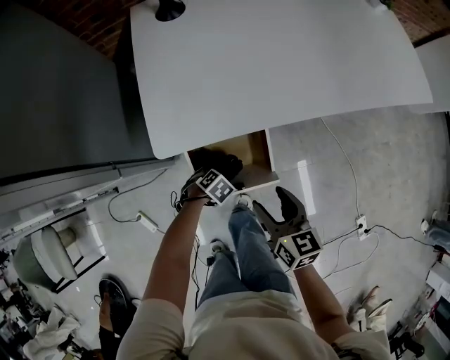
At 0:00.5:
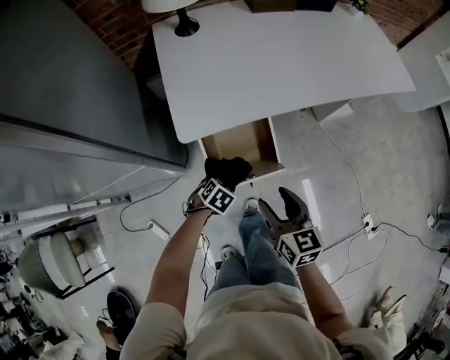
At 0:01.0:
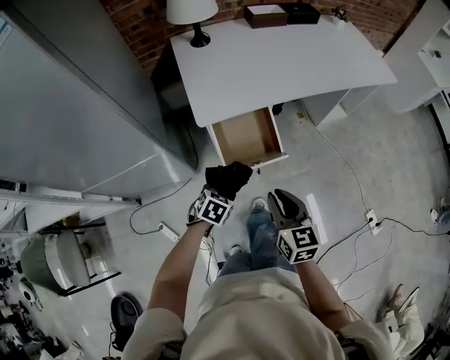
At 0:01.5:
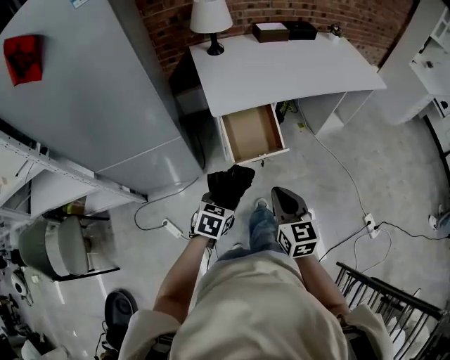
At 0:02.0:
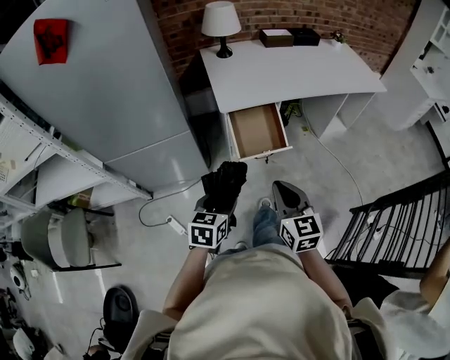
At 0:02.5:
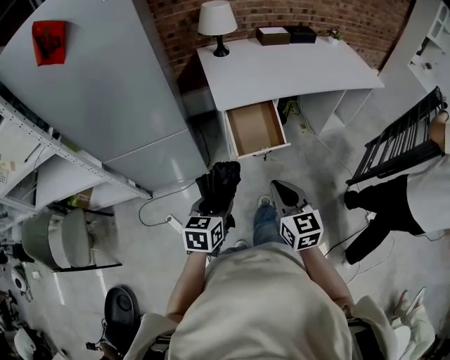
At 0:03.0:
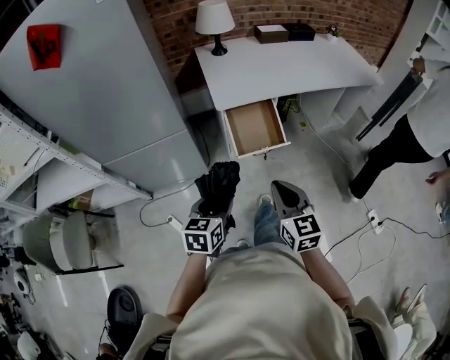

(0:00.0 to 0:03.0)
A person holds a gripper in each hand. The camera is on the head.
0:00.0 - 0:01.5: The left gripper shifts some 30 cm upward, and points its fingers approximately 40 degrees further upward; the right gripper changes place by roughly 35 cm, swivels about 20 degrees, and closes its fingers.
0:01.5 - 0:03.0: The right gripper changes place by roughly 5 cm. Meanwhile the left gripper moves upward and backward, some 10 cm, and swivels some 20 degrees.

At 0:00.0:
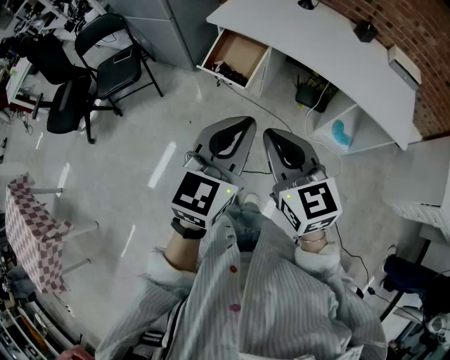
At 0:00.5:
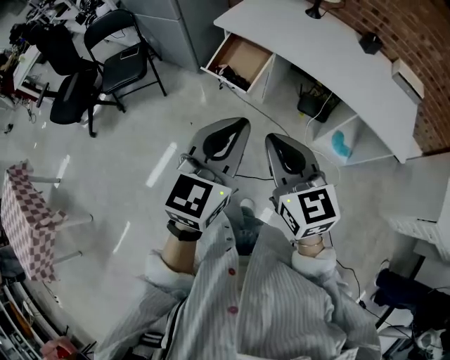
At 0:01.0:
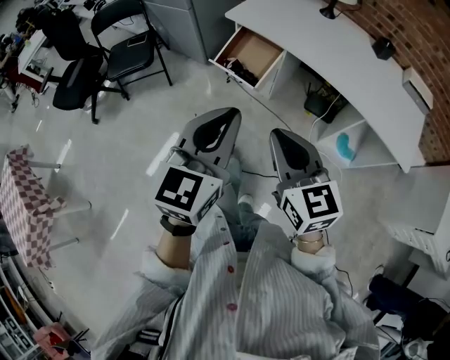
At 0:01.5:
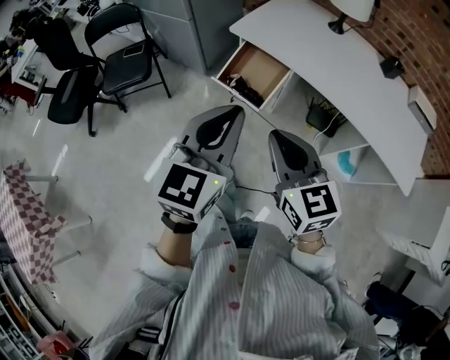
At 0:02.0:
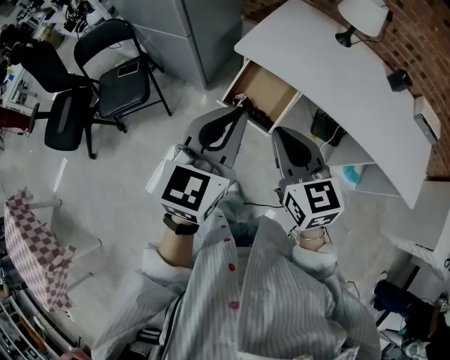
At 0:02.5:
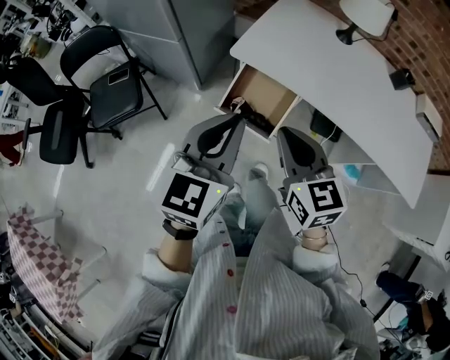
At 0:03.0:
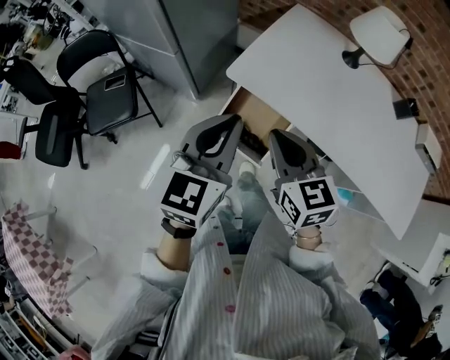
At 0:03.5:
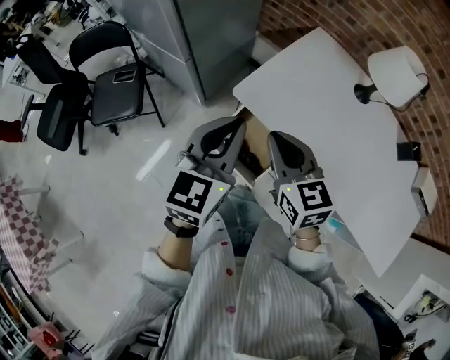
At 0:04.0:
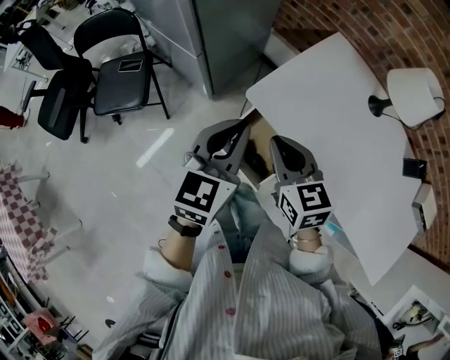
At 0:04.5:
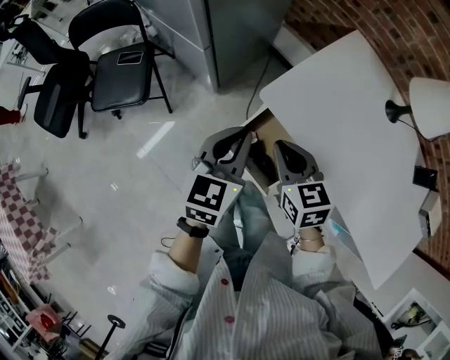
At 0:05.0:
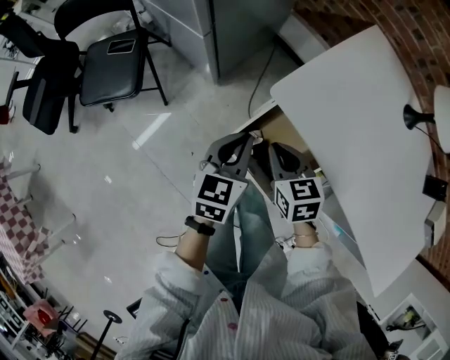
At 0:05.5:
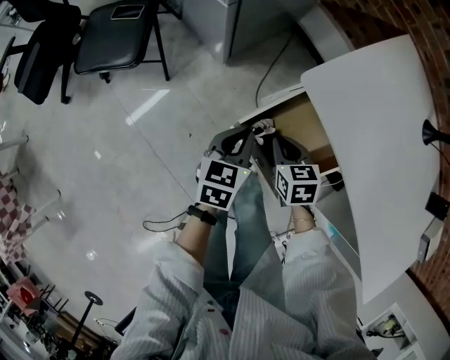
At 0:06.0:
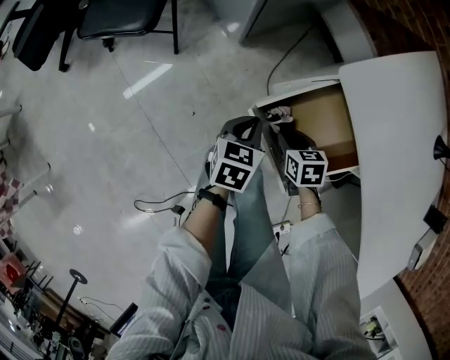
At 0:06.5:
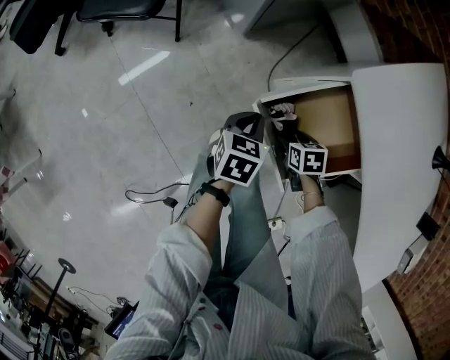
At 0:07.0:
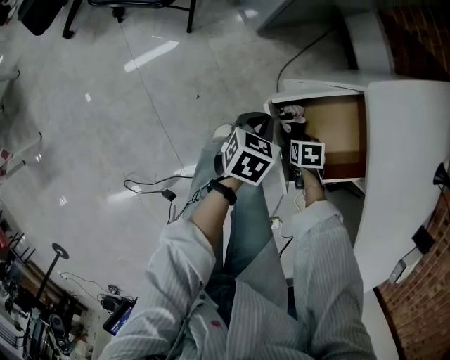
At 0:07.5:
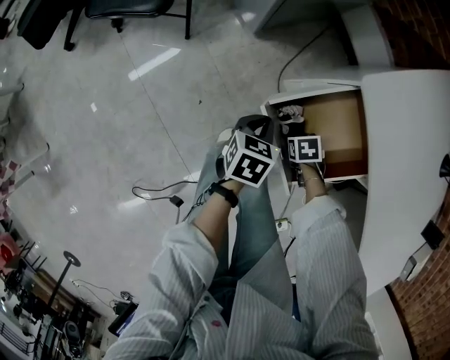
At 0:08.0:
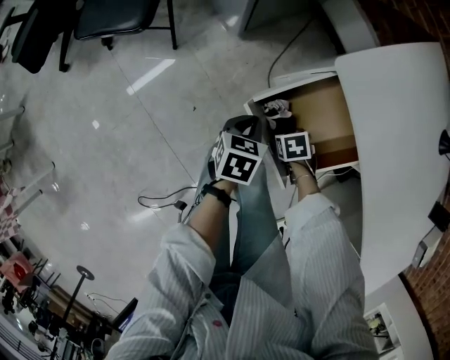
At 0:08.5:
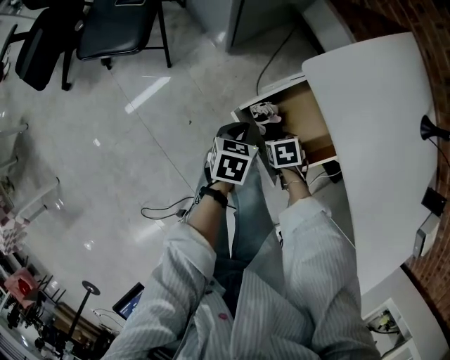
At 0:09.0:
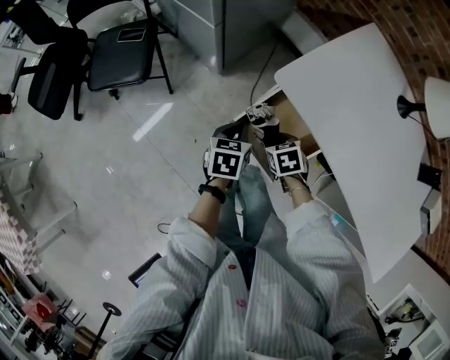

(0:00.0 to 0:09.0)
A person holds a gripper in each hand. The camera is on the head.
0:00.0 - 0:02.0: The right gripper travels forward by about 25 cm. Meanwhile the left gripper shifts approximately 30 cm forward and to the left.
0:02.0 - 0:04.5: Both grippers travel together forward and downward, approximately 35 cm. The right gripper rotates roughly 20 degrees. The left gripper turns by approximately 20 degrees.
0:04.5 - 0:07.0: The grippers both shift downward by about 40 cm. The right gripper points its fingers about 50 degrees further downward, and opens up, while the left gripper swivels approximately 40 degrees.
0:07.0 - 0:09.0: Both grippers travel together upward, roughly 20 cm.

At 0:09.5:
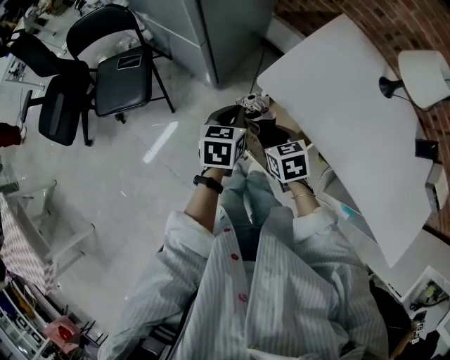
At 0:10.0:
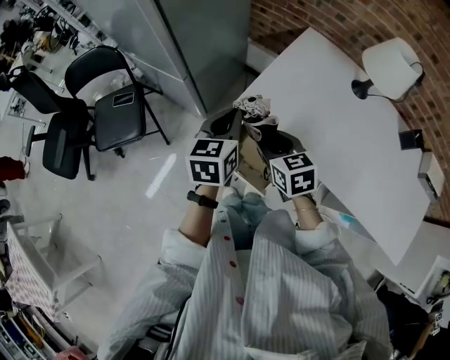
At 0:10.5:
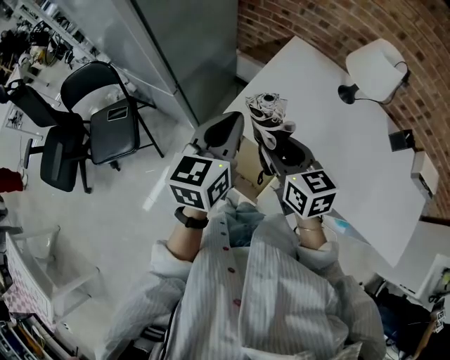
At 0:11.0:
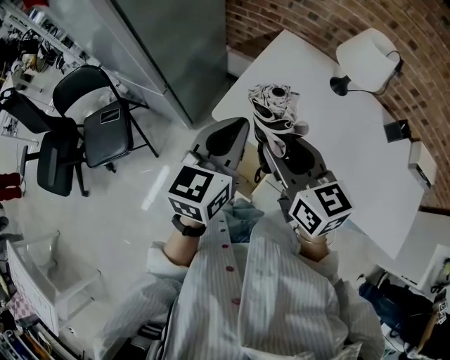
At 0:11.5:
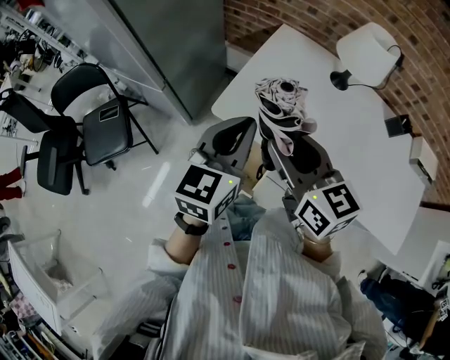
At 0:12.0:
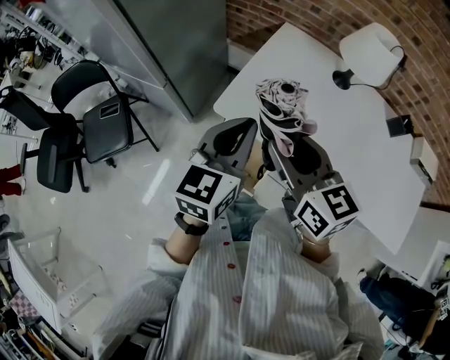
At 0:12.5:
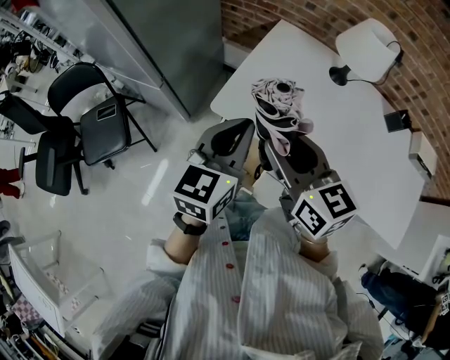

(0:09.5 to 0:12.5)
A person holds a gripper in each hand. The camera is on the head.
0:09.5 - 0:11.0: The two grippers go approximately 30 cm upward and to the right. The left gripper rotates approximately 30 degrees, while the right gripper tilts its fingers approximately 40 degrees upward.
0:11.0 - 0:12.5: The grippers move only a little.

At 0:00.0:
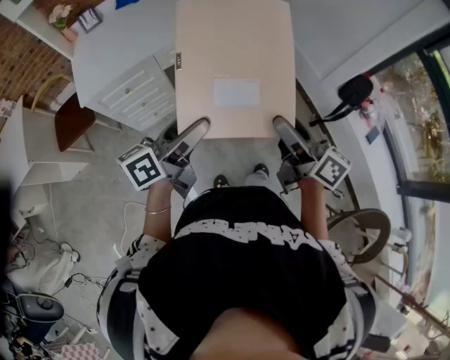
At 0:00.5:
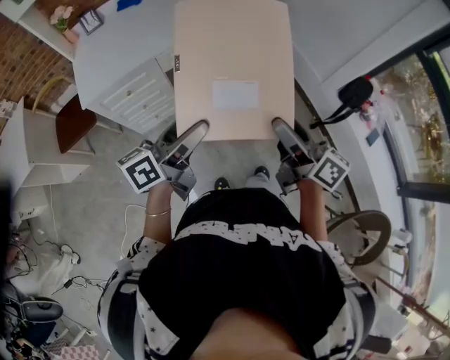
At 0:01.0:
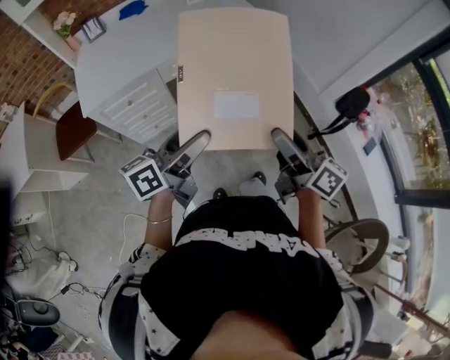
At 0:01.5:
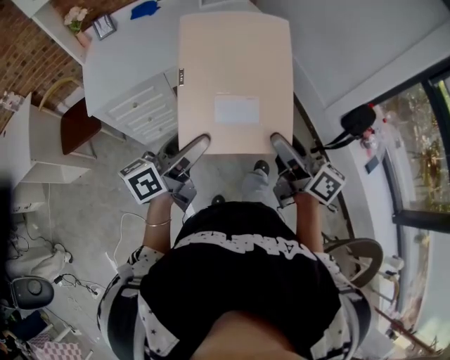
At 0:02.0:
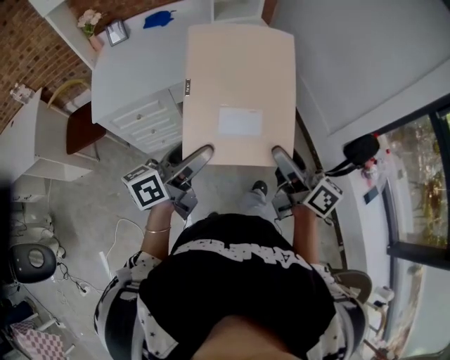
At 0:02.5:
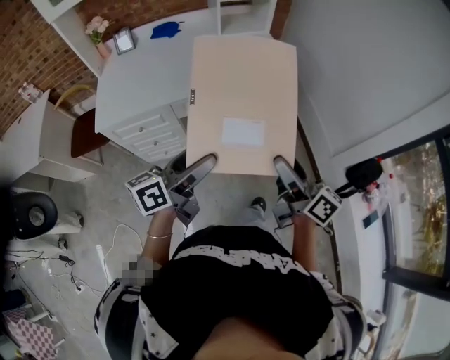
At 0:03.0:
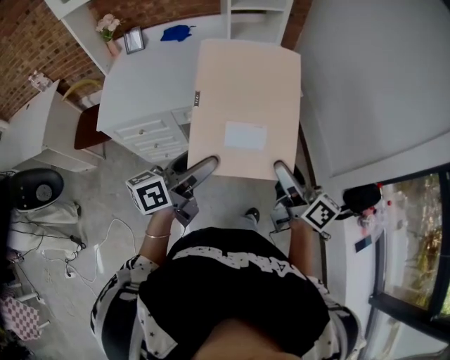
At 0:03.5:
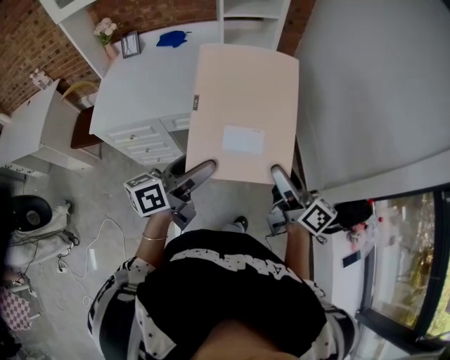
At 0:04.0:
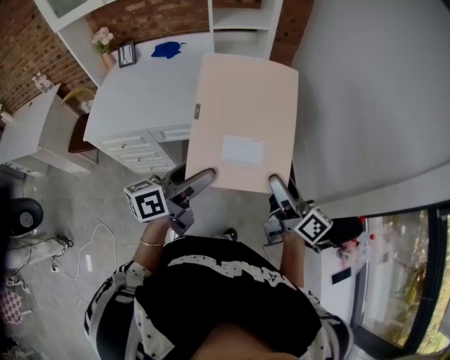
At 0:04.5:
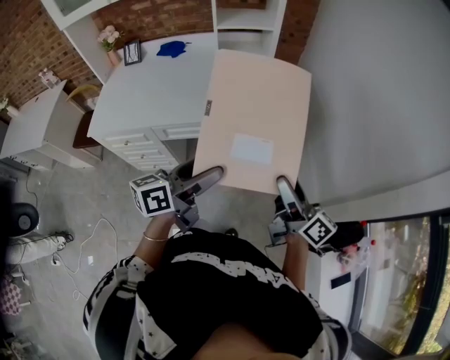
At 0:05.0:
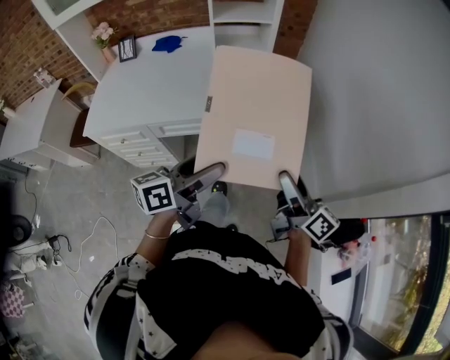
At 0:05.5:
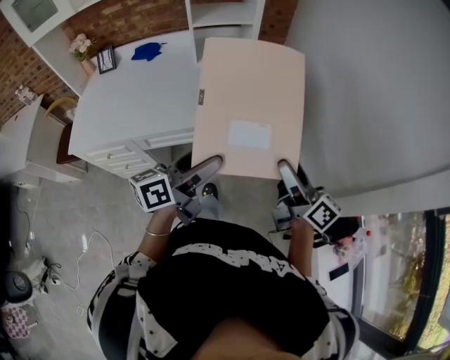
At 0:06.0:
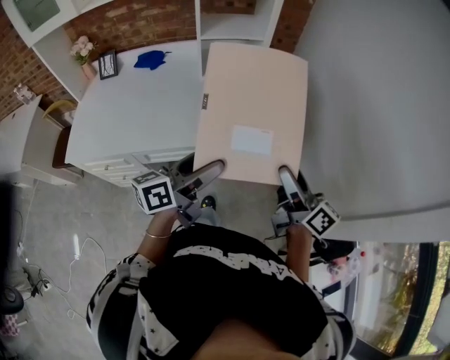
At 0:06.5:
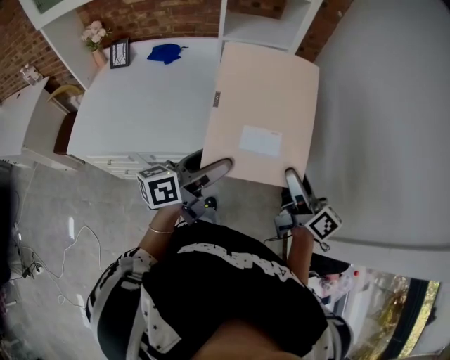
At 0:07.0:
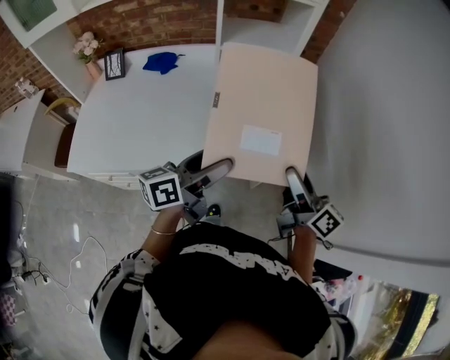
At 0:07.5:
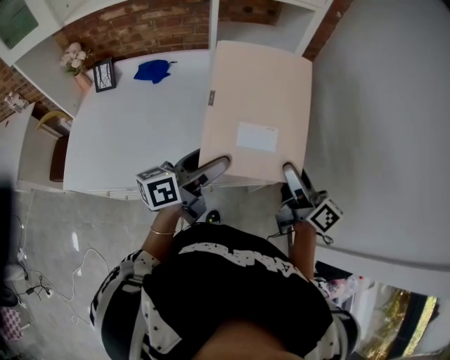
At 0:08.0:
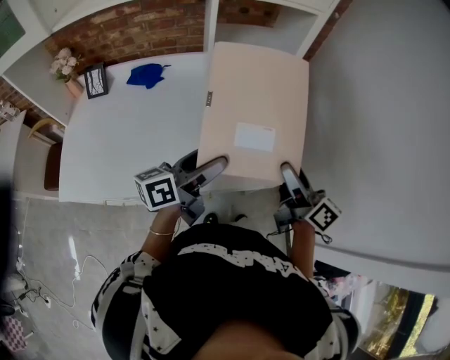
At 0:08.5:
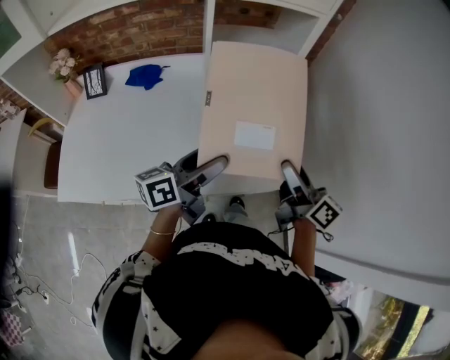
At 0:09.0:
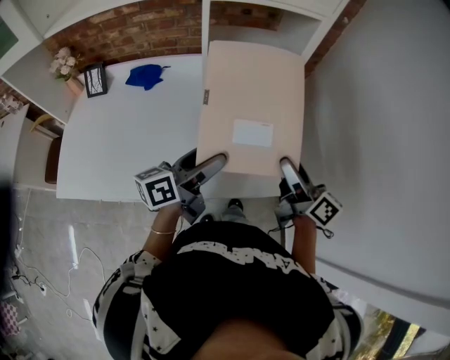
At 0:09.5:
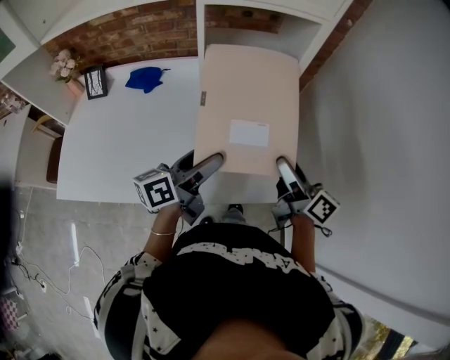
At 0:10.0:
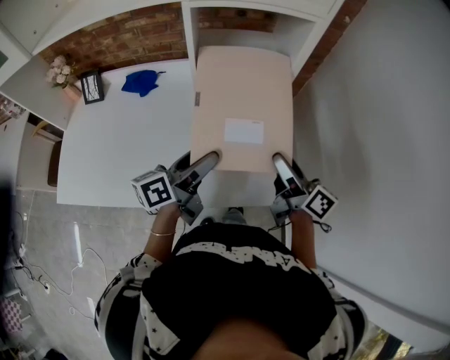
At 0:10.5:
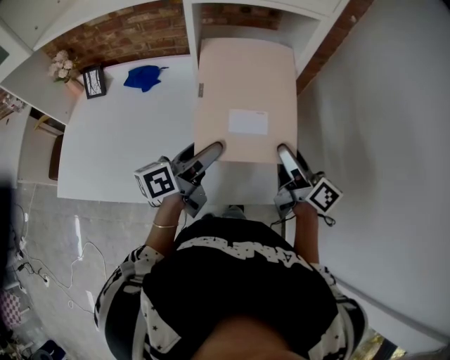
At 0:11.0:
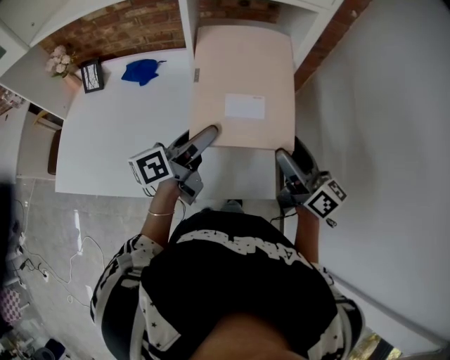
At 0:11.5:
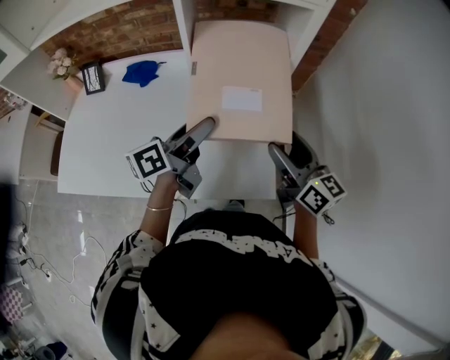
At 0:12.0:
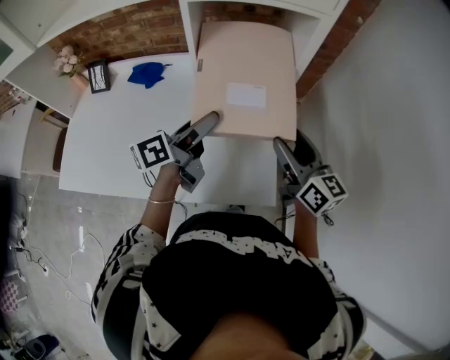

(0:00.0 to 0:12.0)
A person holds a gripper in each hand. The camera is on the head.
0:00.0 - 0:02.0: Both grippers move forward, some 10 cm.
0:02.0 - 0:04.0: The left gripper travels to the right and forward by roughly 25 cm. Meanwhile the right gripper is displaced forward and to the right by about 25 cm.
0:04.0 - 0:06.0: Both grippers travel together forward, approximately 15 cm.
0:06.0 - 0:08.0: Both grippers travel together forward and to the left, about 20 cm.
0:08.0 - 0:10.0: The grippers stay close to where they were, moving slightly.
0:10.0 - 0:12.0: The right gripper changes place by about 5 cm, and turns by about 30 degrees. The left gripper is displaced forward by approximately 10 cm.
